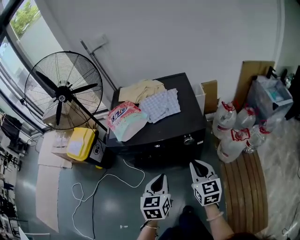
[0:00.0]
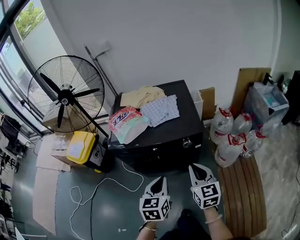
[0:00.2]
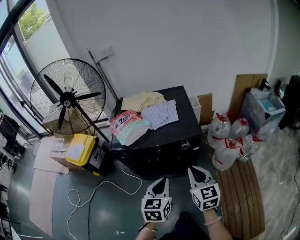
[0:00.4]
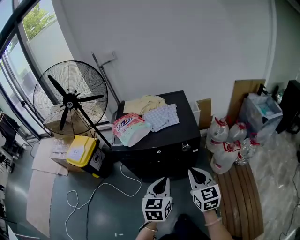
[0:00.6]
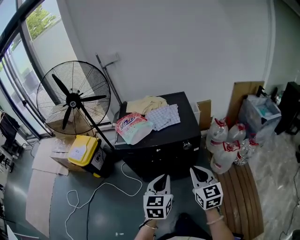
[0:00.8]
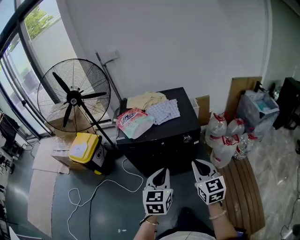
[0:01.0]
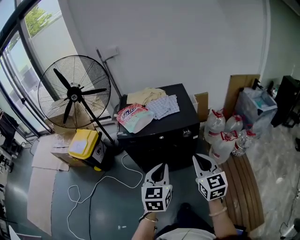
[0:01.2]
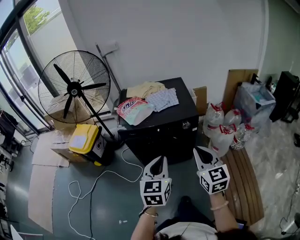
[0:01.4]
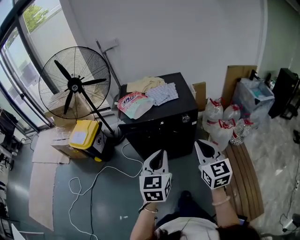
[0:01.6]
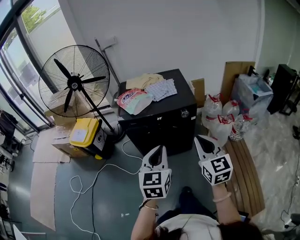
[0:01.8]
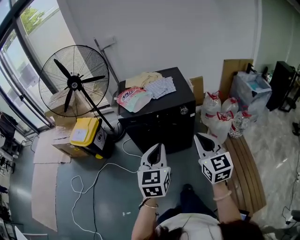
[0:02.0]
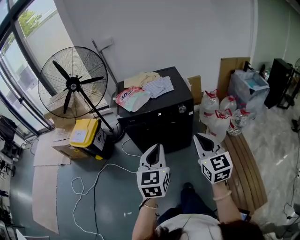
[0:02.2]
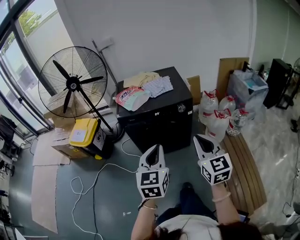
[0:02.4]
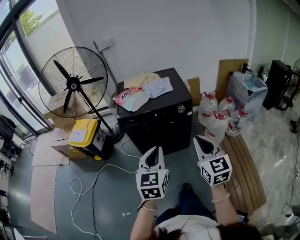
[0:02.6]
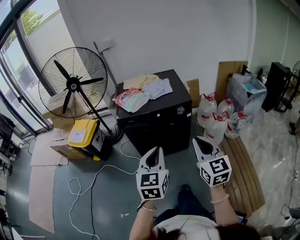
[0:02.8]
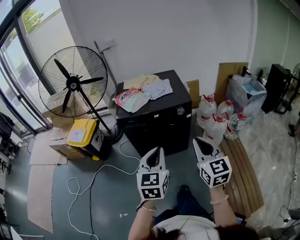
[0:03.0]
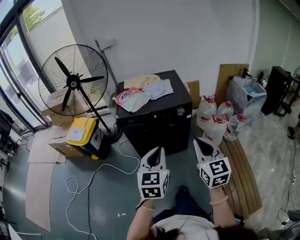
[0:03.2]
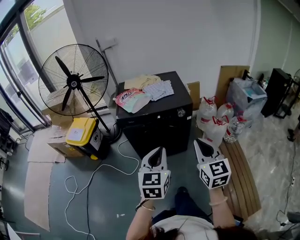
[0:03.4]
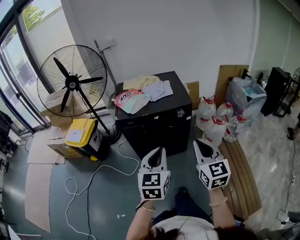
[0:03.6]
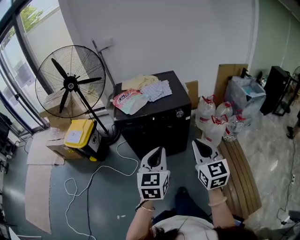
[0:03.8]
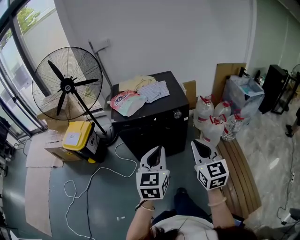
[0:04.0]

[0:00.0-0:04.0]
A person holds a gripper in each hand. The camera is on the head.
0:00.0 to 0:01.4: The right gripper heads backward and upward, covering roughly 20 cm, while the left gripper heads upward and backward, covering about 20 cm.
0:01.4 to 0:02.6: The two grippers go approximately 10 cm backward.
0:02.6 to 0:04.0: There are only small adjustments of the grippers.

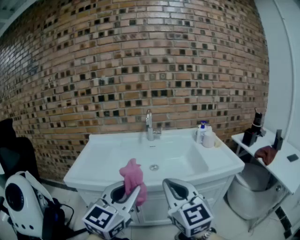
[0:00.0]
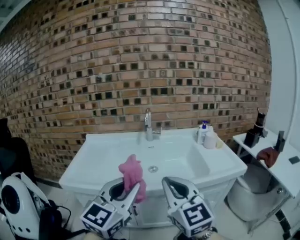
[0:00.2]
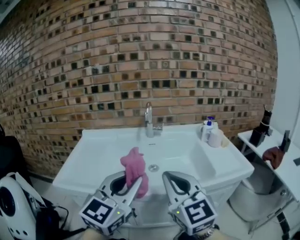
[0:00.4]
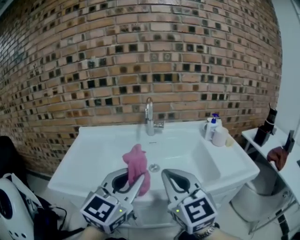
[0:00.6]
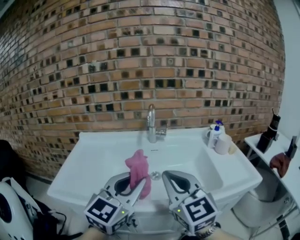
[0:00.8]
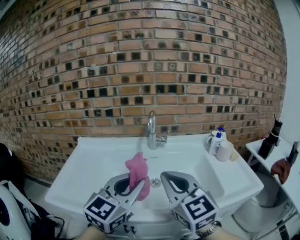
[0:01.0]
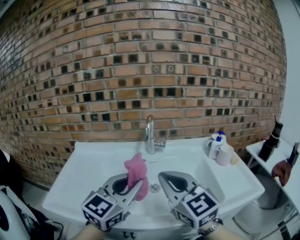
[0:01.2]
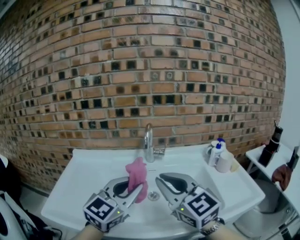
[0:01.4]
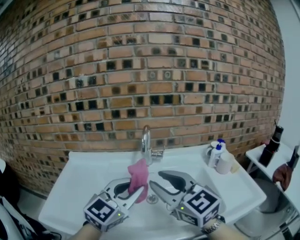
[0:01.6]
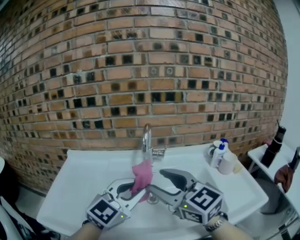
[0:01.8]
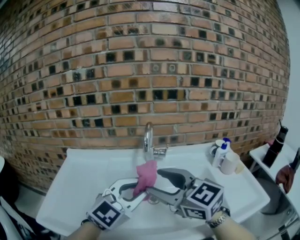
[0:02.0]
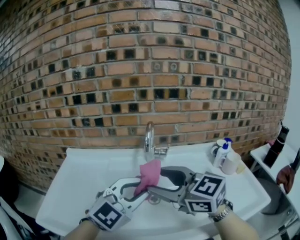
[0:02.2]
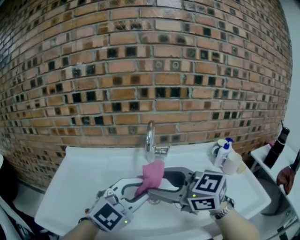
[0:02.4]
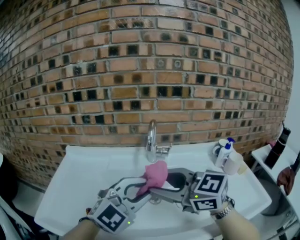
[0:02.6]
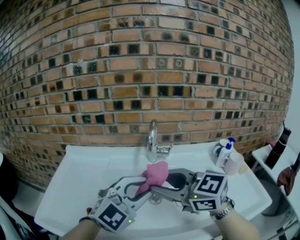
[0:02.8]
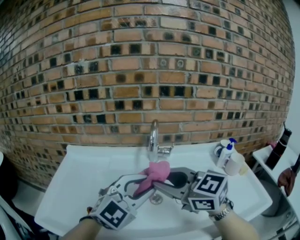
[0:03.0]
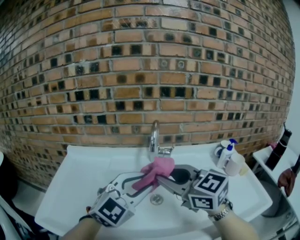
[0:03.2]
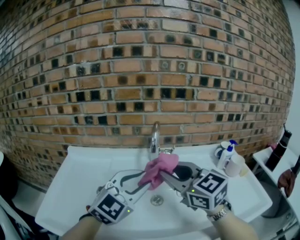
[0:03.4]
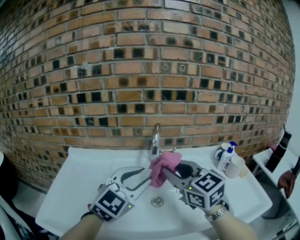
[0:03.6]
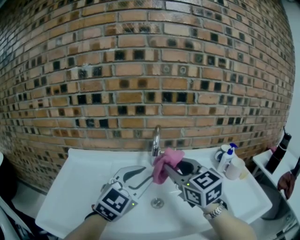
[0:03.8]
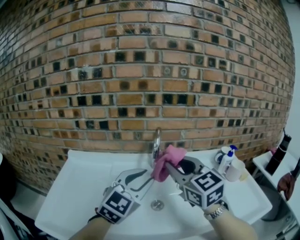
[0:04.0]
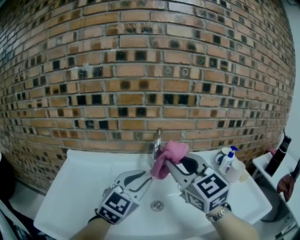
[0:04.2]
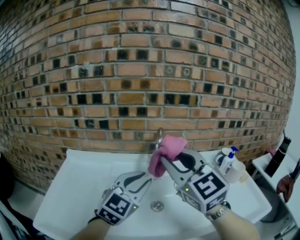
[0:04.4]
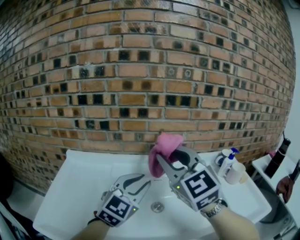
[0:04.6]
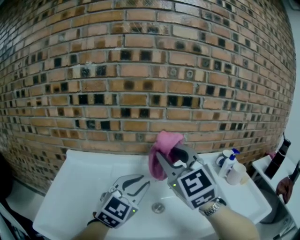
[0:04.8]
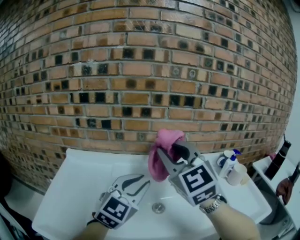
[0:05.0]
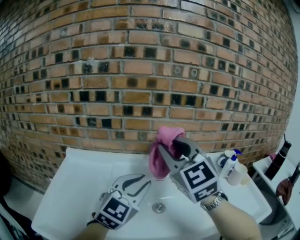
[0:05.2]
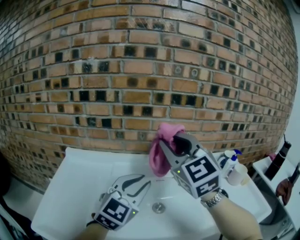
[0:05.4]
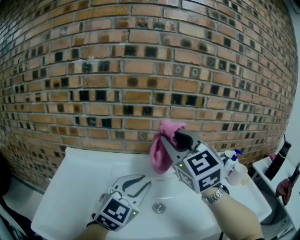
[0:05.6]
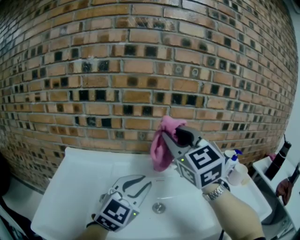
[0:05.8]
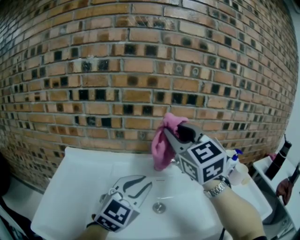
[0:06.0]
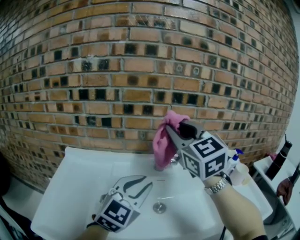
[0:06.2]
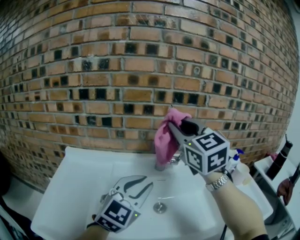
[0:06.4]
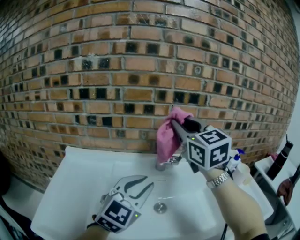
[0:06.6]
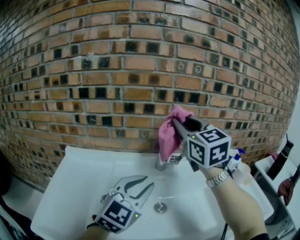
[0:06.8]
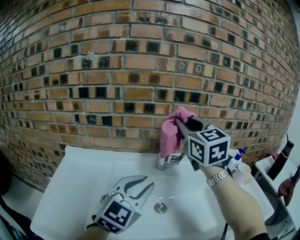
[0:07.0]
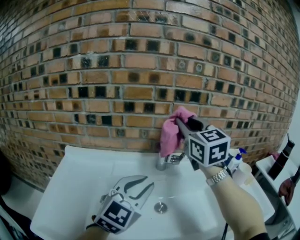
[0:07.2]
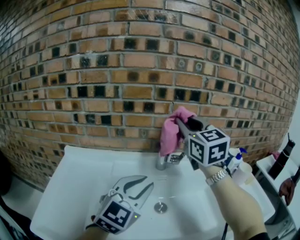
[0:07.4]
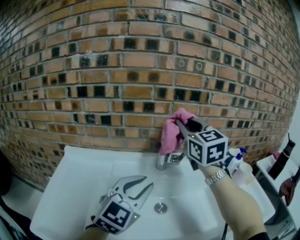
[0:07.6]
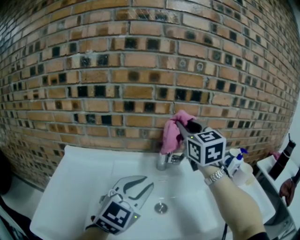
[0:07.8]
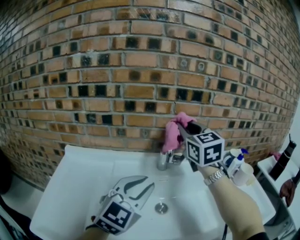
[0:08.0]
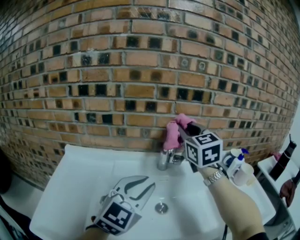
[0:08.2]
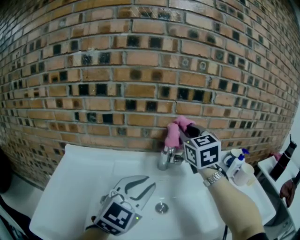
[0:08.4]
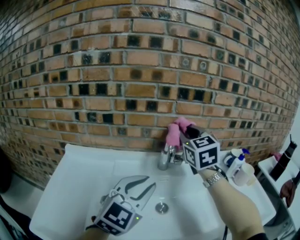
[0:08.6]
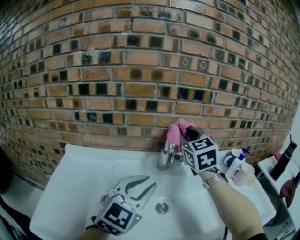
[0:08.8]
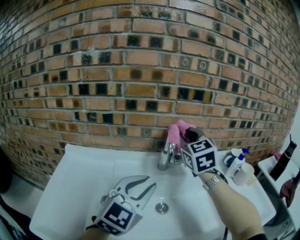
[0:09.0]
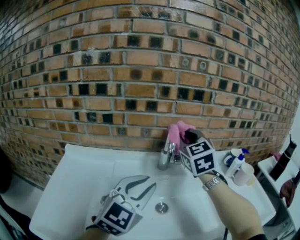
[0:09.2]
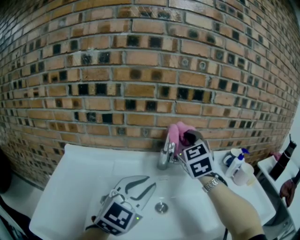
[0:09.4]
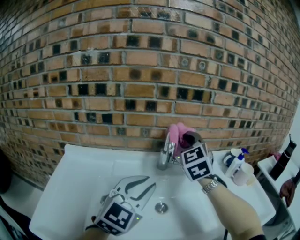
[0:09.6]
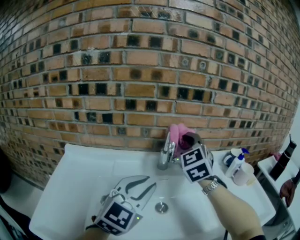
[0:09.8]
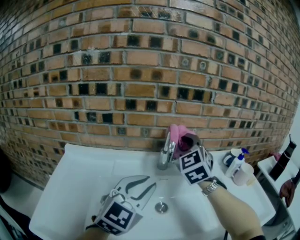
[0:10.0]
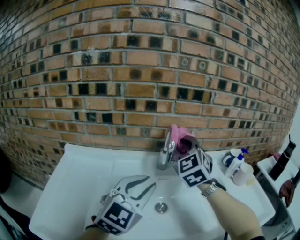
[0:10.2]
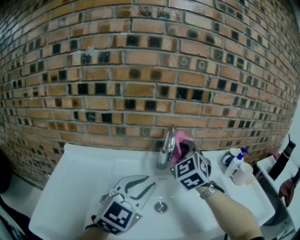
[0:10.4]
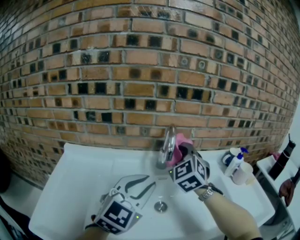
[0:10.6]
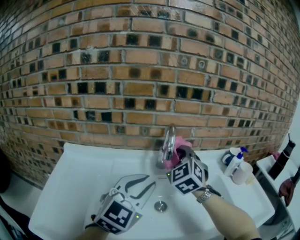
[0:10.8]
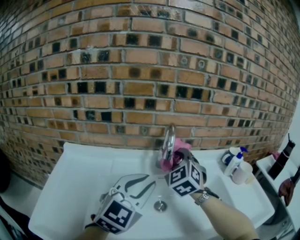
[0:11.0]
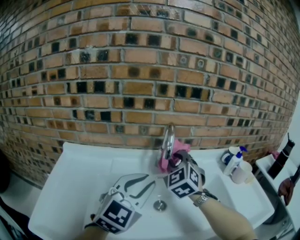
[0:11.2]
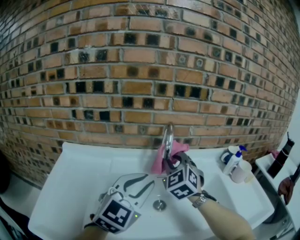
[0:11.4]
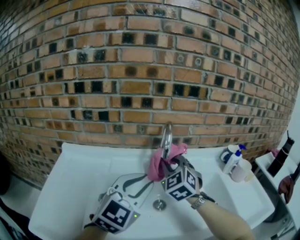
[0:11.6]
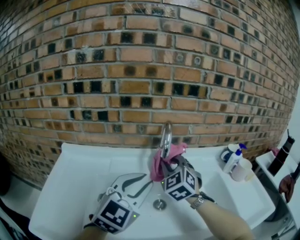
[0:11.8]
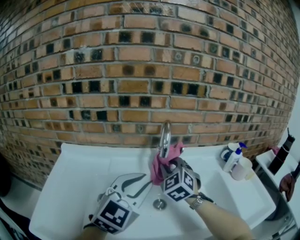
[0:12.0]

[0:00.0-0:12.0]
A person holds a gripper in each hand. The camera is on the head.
0:00.0 to 0:01.6: Both grippers move forward, approximately 30 cm. The right gripper opens up.
0:01.6 to 0:03.0: The right gripper changes place by some 5 cm, rotates roughly 20 degrees, and opens, then closes once more.
0:03.0 to 0:04.4: The left gripper heads forward, covering about 5 cm. Meanwhile the right gripper moves upward and forward, roughly 10 cm, and swivels about 30 degrees.
0:04.4 to 0:06.0: The right gripper moves forward, approximately 10 cm.
0:06.0 to 0:07.6: The right gripper goes roughly 10 cm forward.
0:07.6 to 0:09.0: The right gripper is displaced downward by roughly 5 cm.
0:09.0 to 0:10.4: The right gripper moves some 5 cm, and changes its angle by some 20 degrees.
0:10.4 to 0:12.0: The right gripper travels downward by about 10 cm.

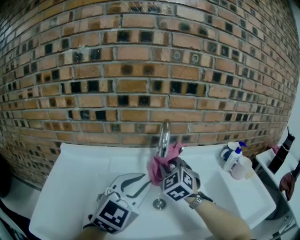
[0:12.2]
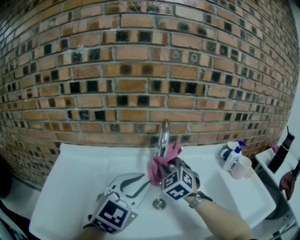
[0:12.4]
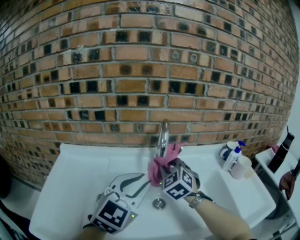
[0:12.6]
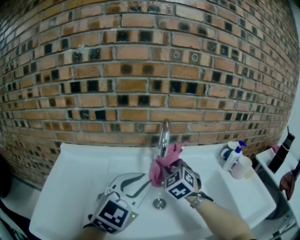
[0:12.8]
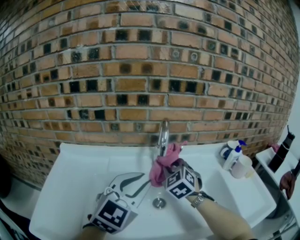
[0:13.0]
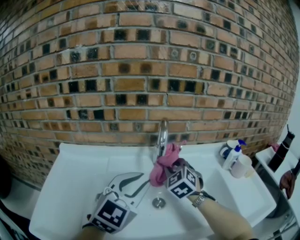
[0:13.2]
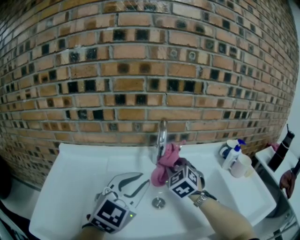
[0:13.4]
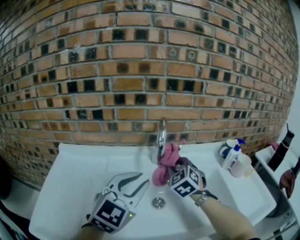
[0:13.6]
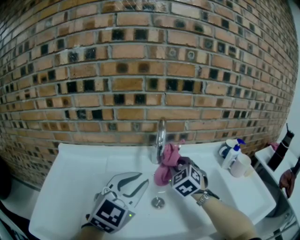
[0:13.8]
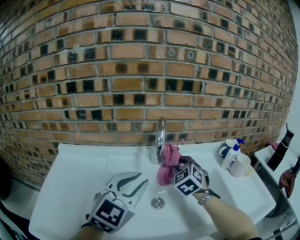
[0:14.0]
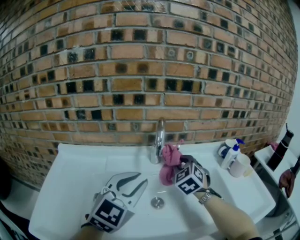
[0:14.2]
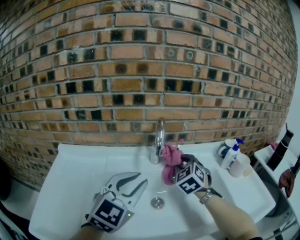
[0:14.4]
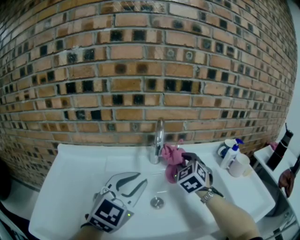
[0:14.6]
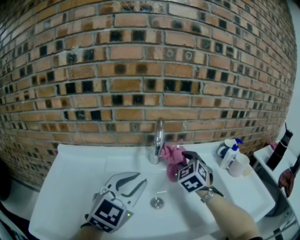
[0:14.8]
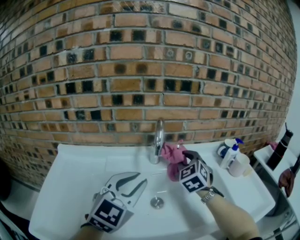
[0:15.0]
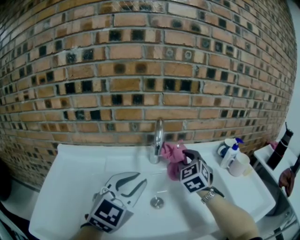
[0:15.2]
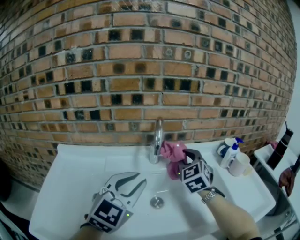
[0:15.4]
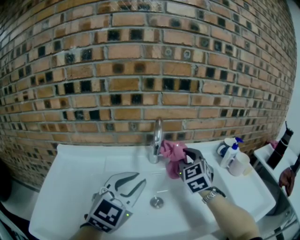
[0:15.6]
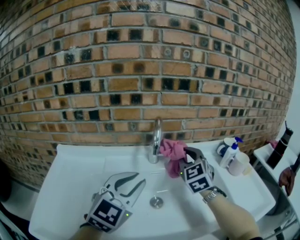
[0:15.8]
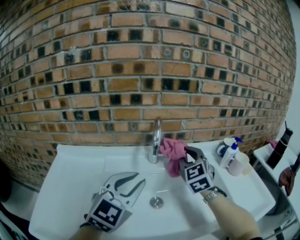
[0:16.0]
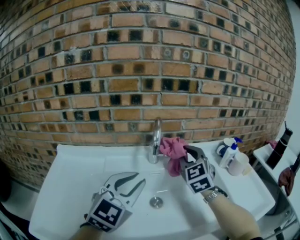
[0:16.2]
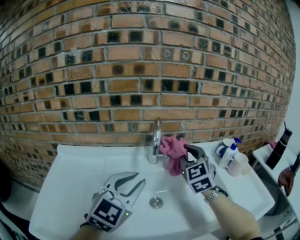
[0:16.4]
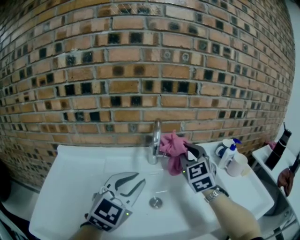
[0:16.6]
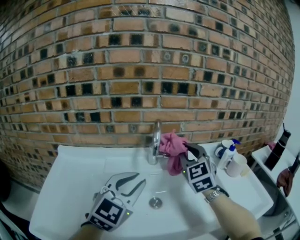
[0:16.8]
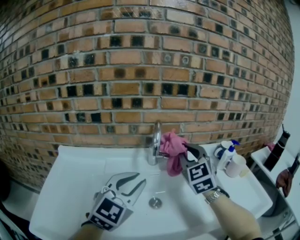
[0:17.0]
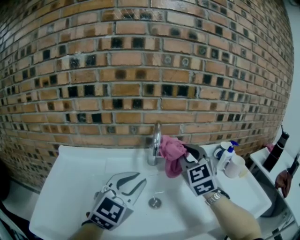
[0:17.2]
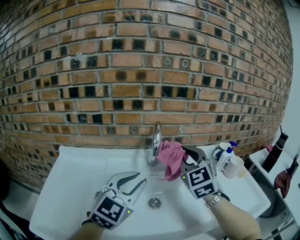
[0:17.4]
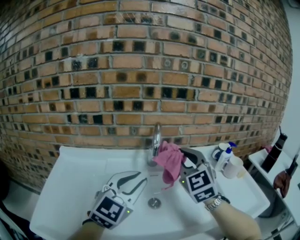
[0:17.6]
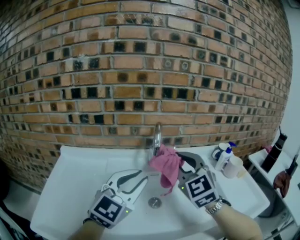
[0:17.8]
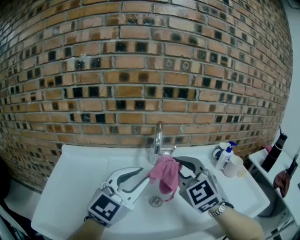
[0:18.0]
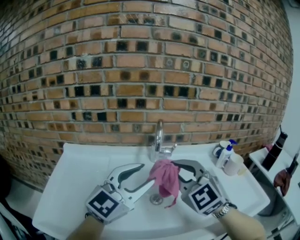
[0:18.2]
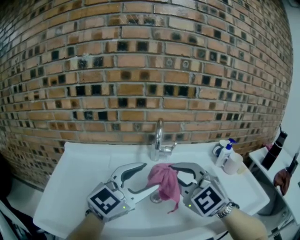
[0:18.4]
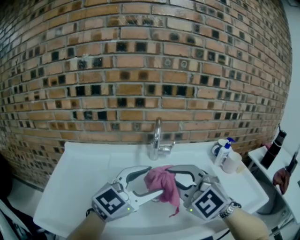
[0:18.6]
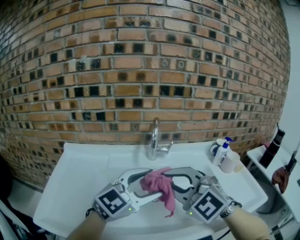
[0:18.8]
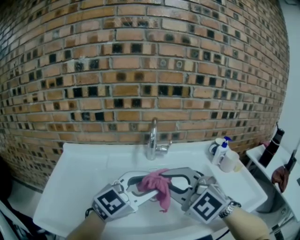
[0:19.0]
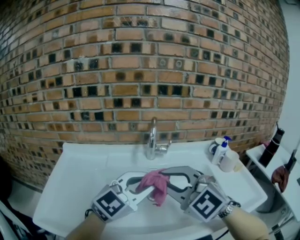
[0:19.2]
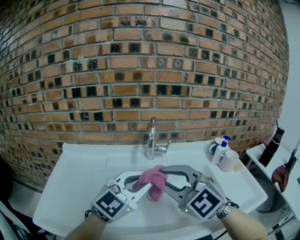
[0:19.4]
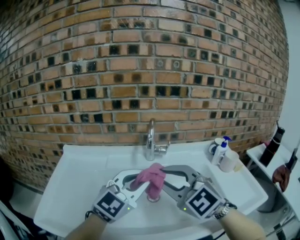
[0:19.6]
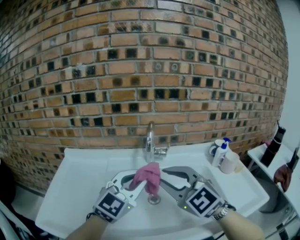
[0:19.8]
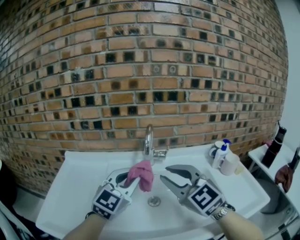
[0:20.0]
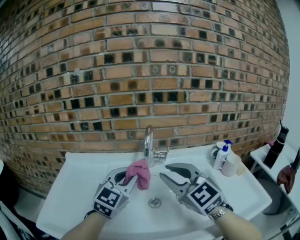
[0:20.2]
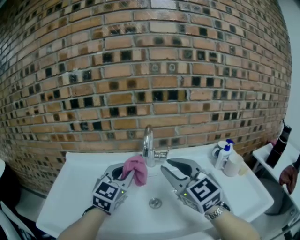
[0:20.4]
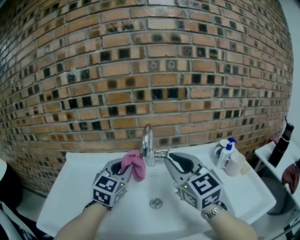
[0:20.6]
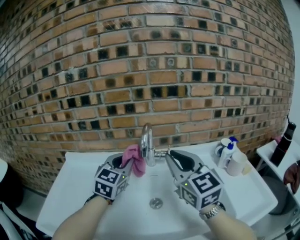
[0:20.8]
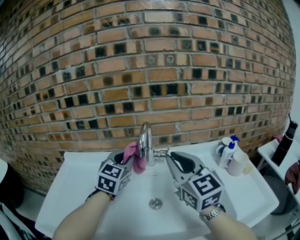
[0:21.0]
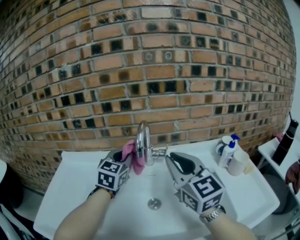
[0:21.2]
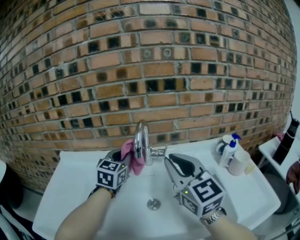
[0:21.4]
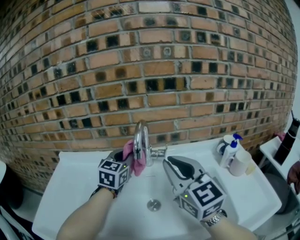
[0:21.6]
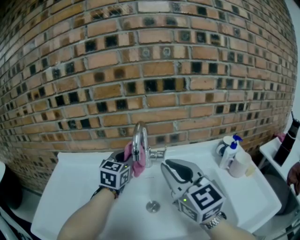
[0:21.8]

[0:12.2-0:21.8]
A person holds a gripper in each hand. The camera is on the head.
0:12.2 to 0:13.8: The right gripper shifts approximately 5 cm to the right.
0:13.8 to 0:15.4: The right gripper heads upward, covering some 5 cm.
0:15.4 to 0:17.0: The right gripper travels upward by approximately 5 cm.
0:17.0 to 0:18.6: The left gripper travels backward and to the right by roughly 5 cm, rotates some 20 degrees, and opens, while the right gripper heads backward, covering roughly 20 cm, and rotates about 30 degrees.
0:18.6 to 0:20.2: The right gripper changes place by about 5 cm. The left gripper moves forward, approximately 10 cm, changes its angle by some 20 degrees, and closes its fingers.
0:20.2 to 0:21.8: The left gripper goes some 15 cm forward; the right gripper changes place by roughly 5 cm, and changes its angle by some 20 degrees.
